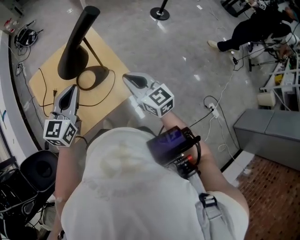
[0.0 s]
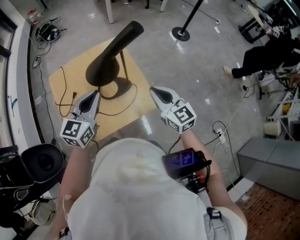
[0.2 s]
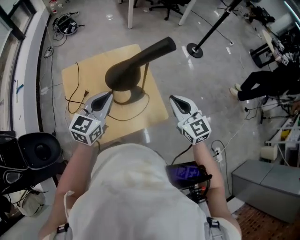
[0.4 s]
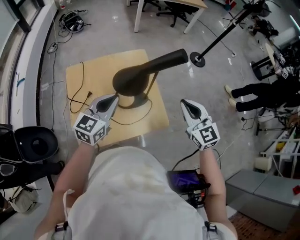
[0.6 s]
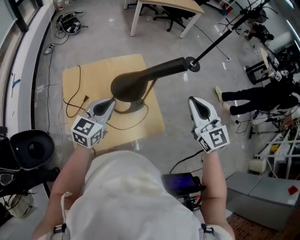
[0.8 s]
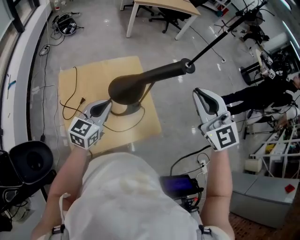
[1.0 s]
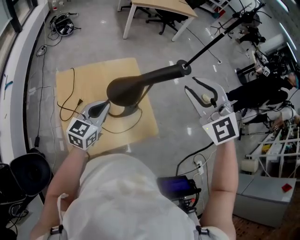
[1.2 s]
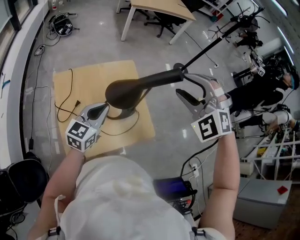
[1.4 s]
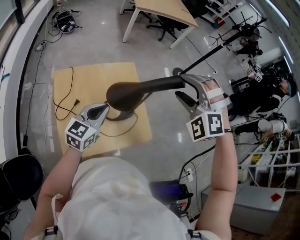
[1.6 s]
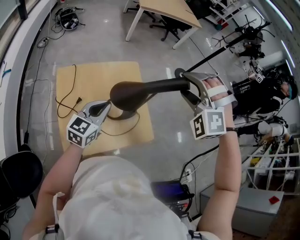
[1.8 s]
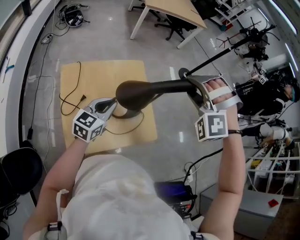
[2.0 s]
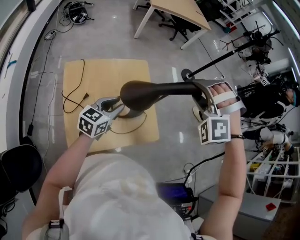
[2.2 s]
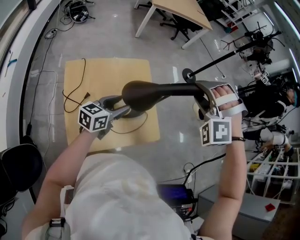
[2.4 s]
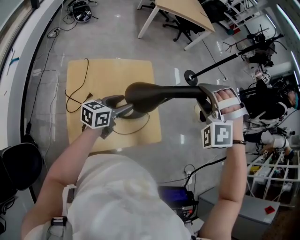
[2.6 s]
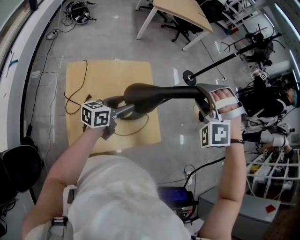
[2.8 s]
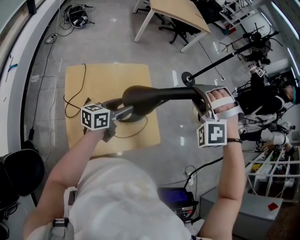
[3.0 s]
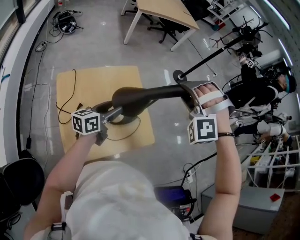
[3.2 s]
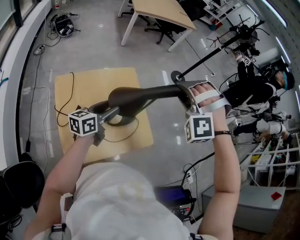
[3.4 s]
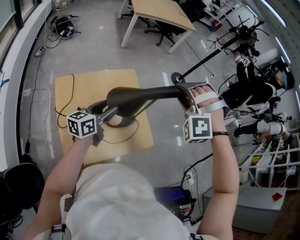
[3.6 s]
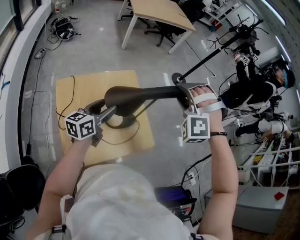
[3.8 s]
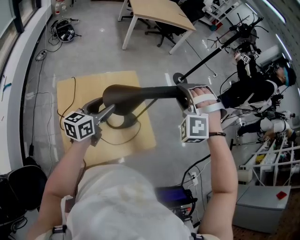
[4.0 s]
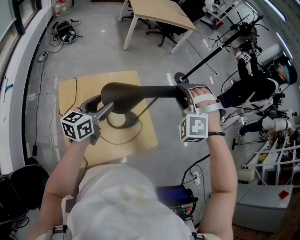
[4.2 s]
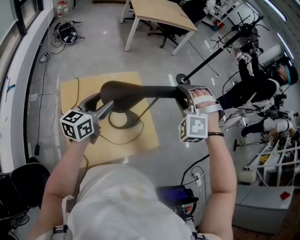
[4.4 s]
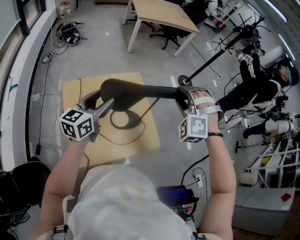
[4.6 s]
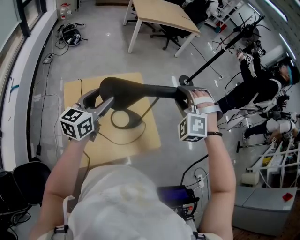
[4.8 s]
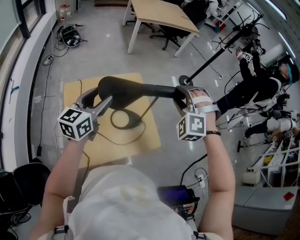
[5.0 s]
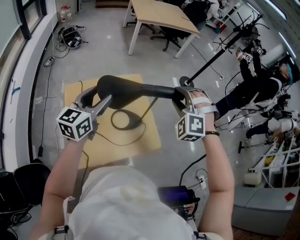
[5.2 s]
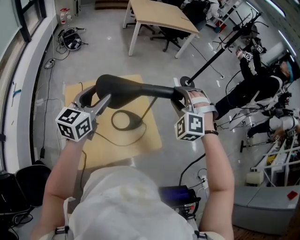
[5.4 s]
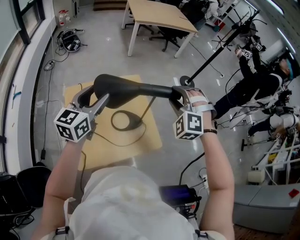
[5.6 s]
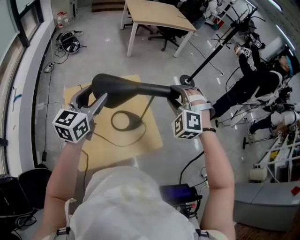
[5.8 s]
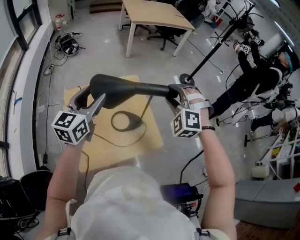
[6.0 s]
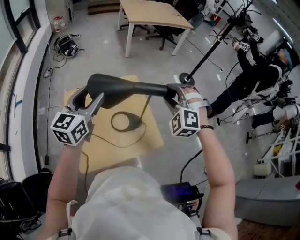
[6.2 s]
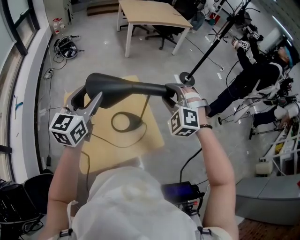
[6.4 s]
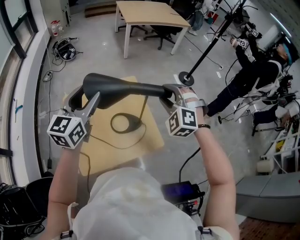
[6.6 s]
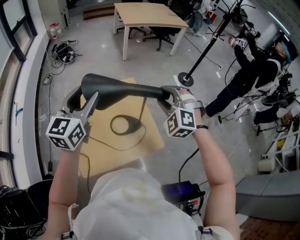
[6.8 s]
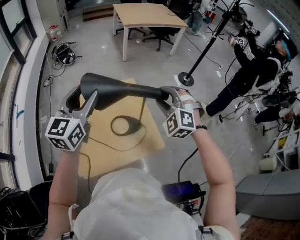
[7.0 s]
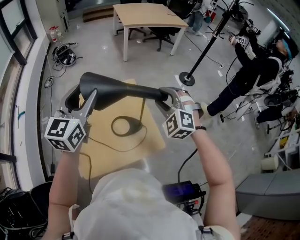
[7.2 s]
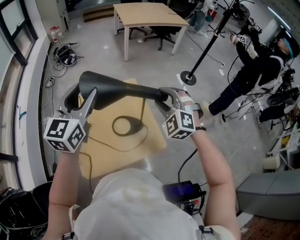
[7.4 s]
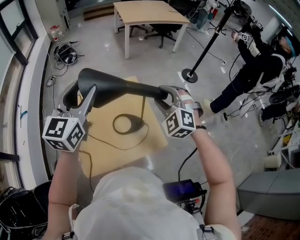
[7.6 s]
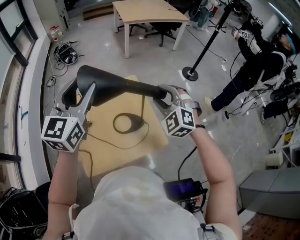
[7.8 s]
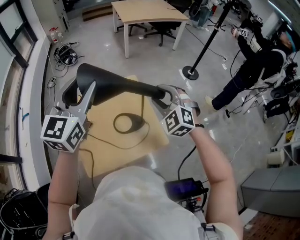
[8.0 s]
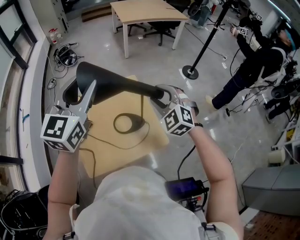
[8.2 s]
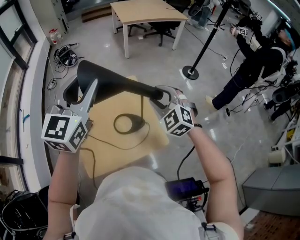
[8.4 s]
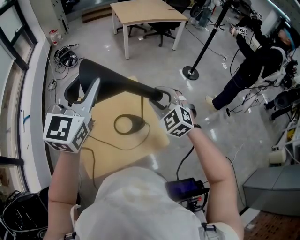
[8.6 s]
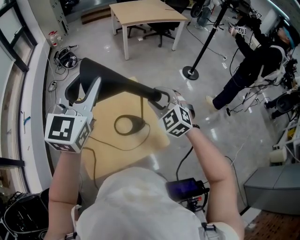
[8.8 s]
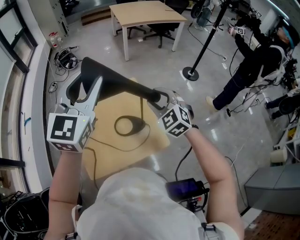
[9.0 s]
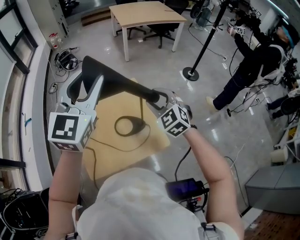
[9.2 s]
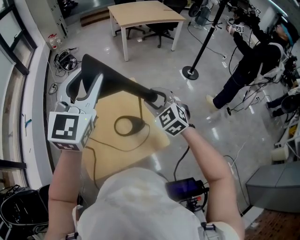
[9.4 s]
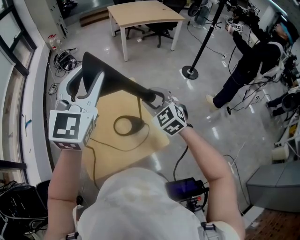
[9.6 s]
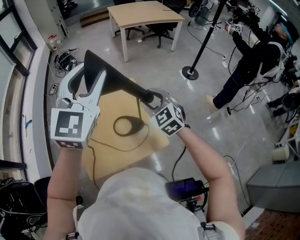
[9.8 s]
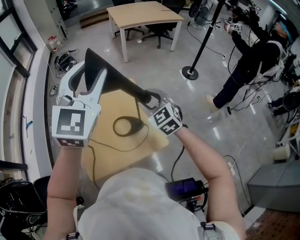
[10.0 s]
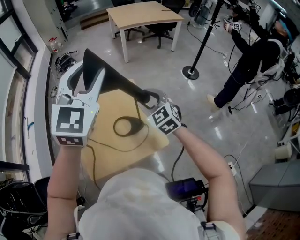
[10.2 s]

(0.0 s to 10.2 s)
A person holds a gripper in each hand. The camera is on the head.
0.0 s - 1.4 s: The left gripper goes some 10 cm to the left and forward. The right gripper heads upward and forward, covering some 25 cm, rolls counterclockwise, seen from behind, by some 80 degrees, and opens its fingers.
1.4 s - 3.0 s: The right gripper ends up roughly 5 cm from where it was, and rotates about 40 degrees. Meanwhile the left gripper changes place by some 5 cm, turns by approximately 30 degrees, and opens its fingers.
3.0 s - 4.4 s: The left gripper moves upward and to the left, approximately 10 cm, and swivels roughly 20 degrees.
4.4 s - 5.8 s: The left gripper goes about 10 cm upward.
5.8 s - 7.2 s: The left gripper heads upward, covering roughly 10 cm.
7.2 s - 8.8 s: The left gripper heads upward and to the right, covering roughly 10 cm. Meanwhile the right gripper swivels some 20 degrees.
8.8 s - 10.2 s: The left gripper goes approximately 5 cm to the right.

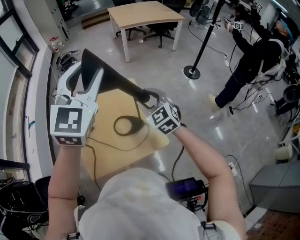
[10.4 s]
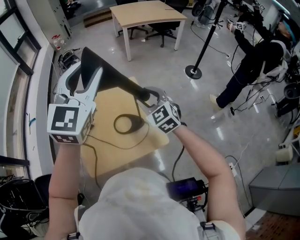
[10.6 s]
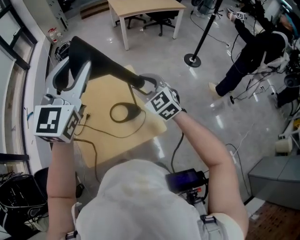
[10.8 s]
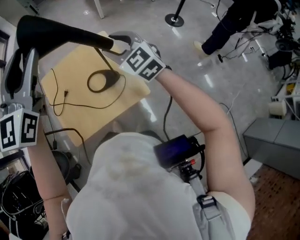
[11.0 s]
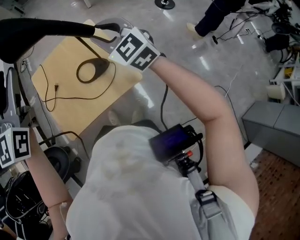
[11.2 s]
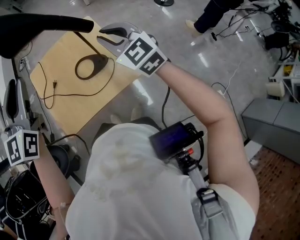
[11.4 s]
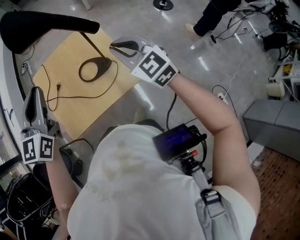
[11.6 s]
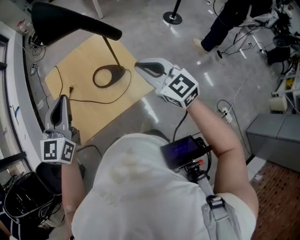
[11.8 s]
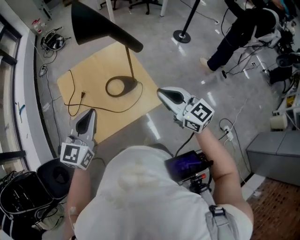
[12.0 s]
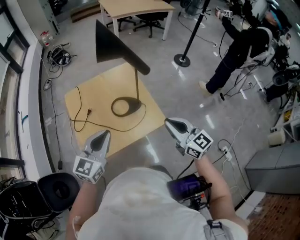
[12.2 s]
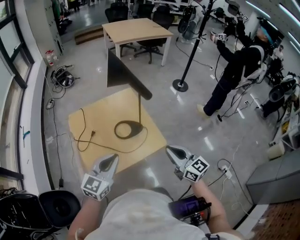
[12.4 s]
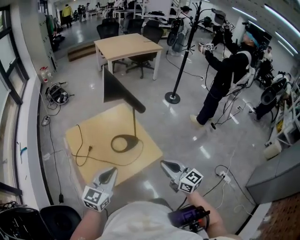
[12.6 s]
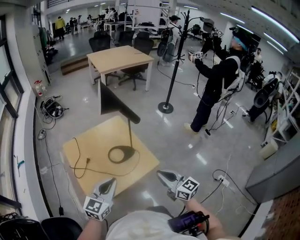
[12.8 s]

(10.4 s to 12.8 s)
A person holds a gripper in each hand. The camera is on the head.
10.4 s - 11.6 s: The left gripper is displaced downward, to the left and backward by approximately 20 cm, changes its angle by some 20 degrees, and closes its fingers. Meanwhile the right gripper moves backward, approximately 10 cm, and closes up.
11.6 s - 12.8 s: The right gripper moves backward, roughly 20 cm, and changes its angle by some 30 degrees, while the left gripper shifts approximately 20 cm backward and downward, and changes its angle by roughly 30 degrees.

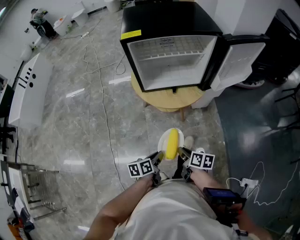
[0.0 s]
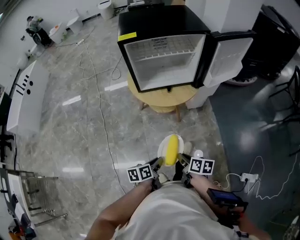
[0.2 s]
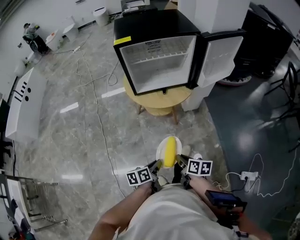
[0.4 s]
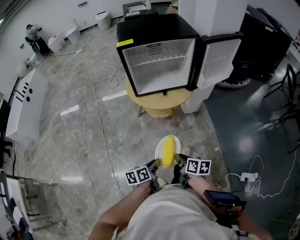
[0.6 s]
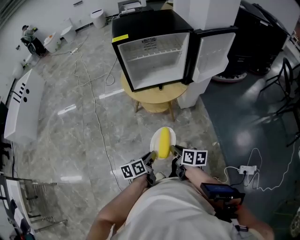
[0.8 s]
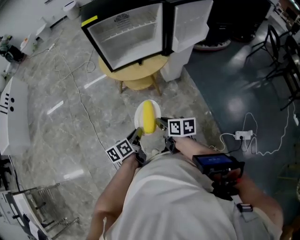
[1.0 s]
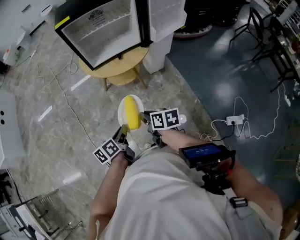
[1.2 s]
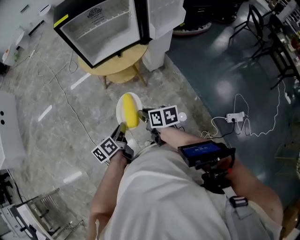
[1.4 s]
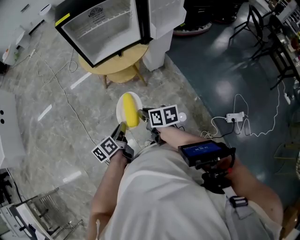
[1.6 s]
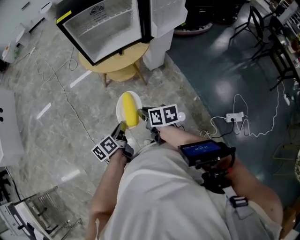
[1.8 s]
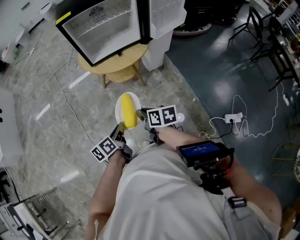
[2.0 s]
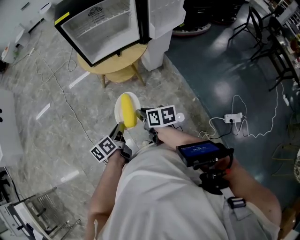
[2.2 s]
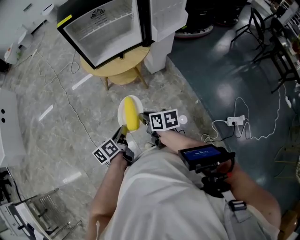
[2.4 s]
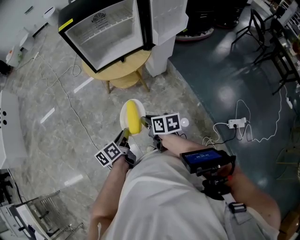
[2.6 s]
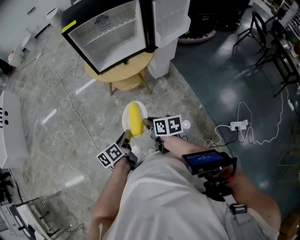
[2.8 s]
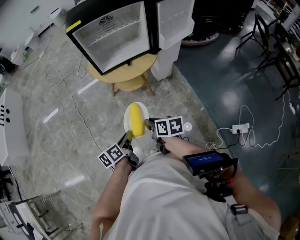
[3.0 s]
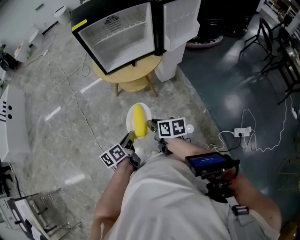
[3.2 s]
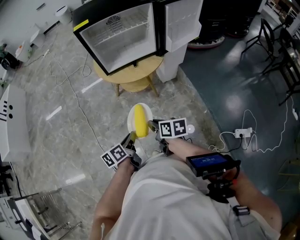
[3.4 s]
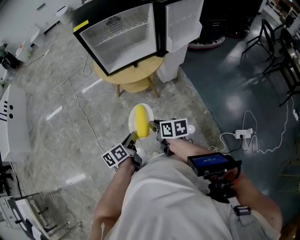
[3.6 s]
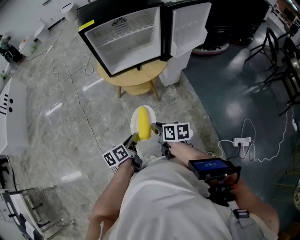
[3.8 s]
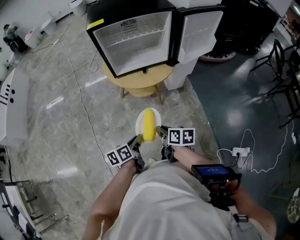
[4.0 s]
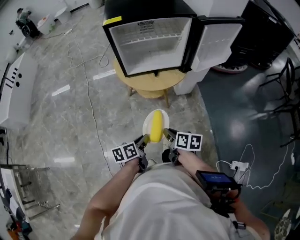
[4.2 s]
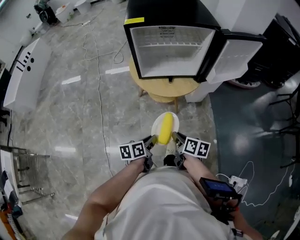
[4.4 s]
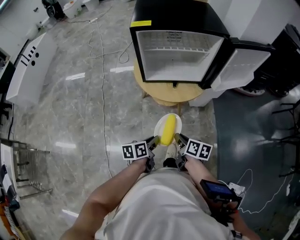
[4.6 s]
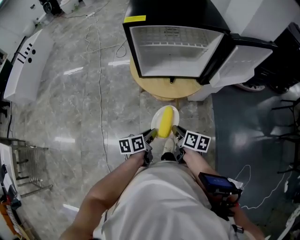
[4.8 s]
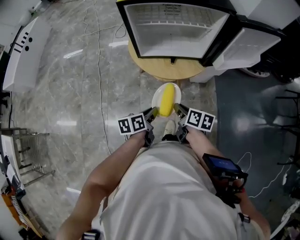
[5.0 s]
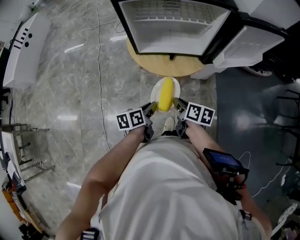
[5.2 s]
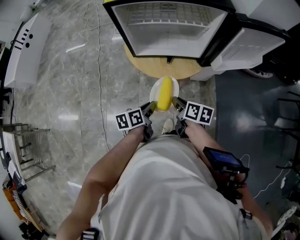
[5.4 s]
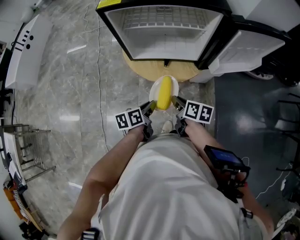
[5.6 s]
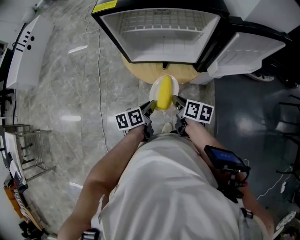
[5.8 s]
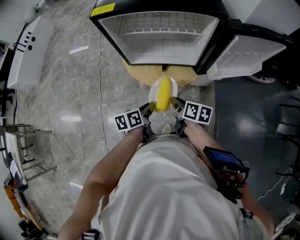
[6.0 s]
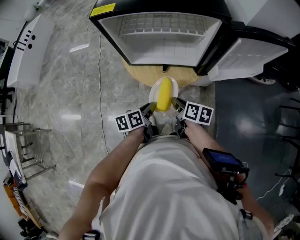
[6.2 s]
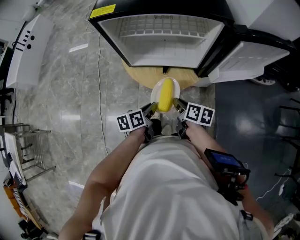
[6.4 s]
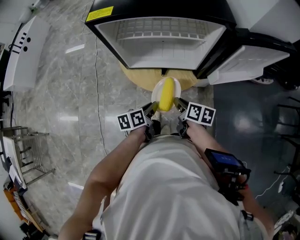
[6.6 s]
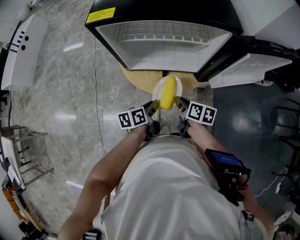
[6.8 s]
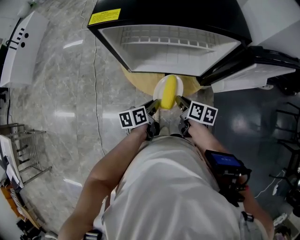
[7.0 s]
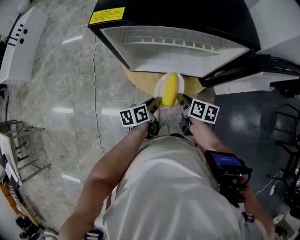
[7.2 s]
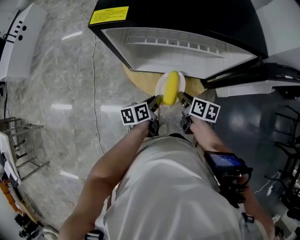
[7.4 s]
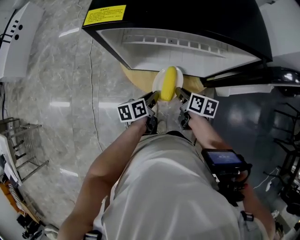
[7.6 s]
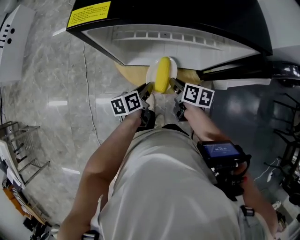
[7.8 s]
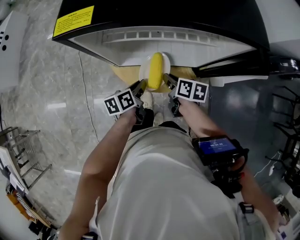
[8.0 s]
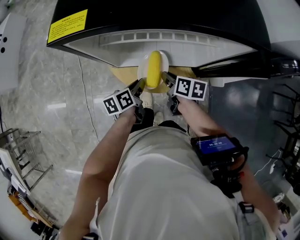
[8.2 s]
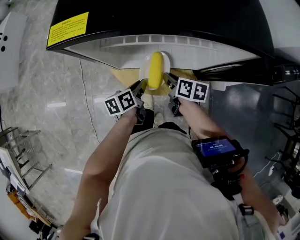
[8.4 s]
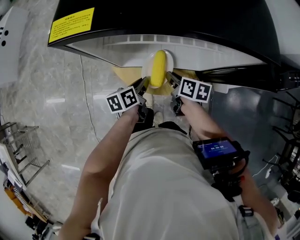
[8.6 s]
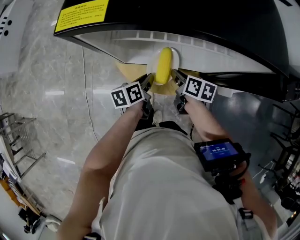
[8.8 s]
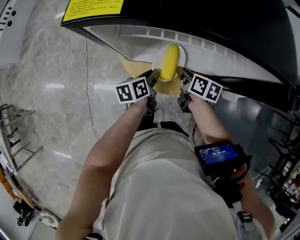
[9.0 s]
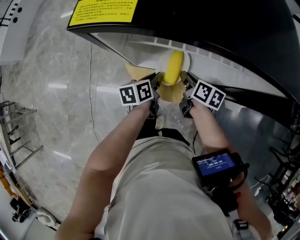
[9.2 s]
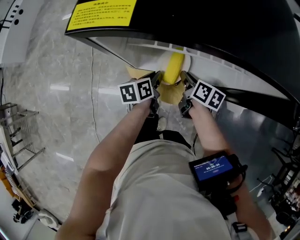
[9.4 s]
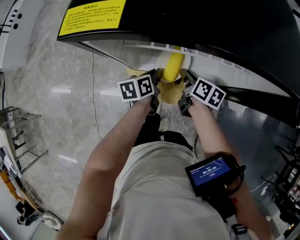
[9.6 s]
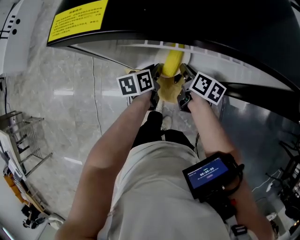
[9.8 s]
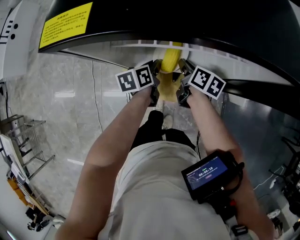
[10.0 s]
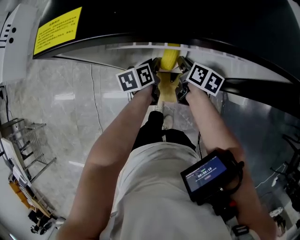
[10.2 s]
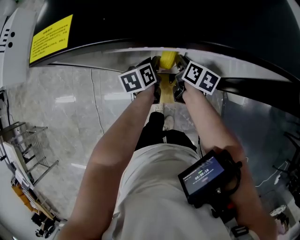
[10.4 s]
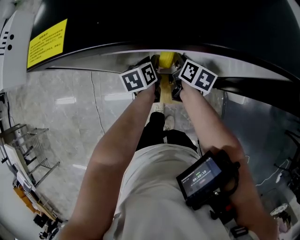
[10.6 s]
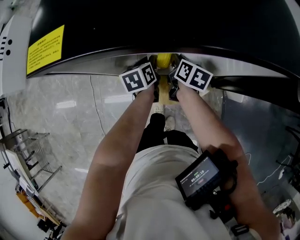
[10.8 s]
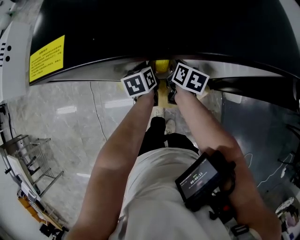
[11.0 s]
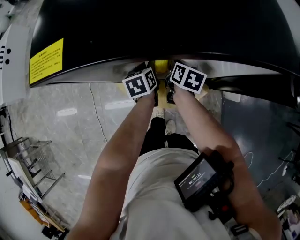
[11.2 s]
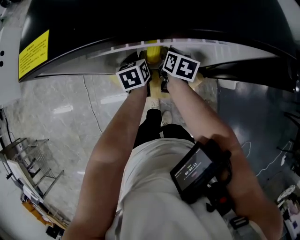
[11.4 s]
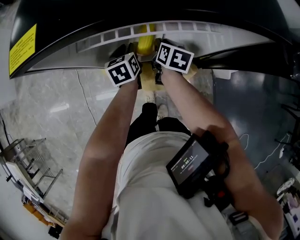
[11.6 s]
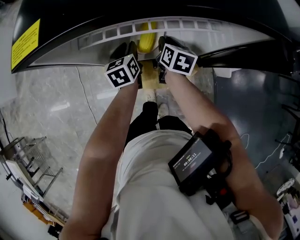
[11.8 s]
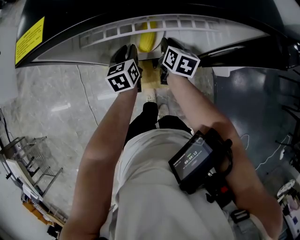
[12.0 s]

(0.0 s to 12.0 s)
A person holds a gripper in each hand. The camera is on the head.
0.0 s - 1.6 s: The right gripper moves backward and upward, approximately 10 cm, while the left gripper is displaced backward by some 10 cm.
1.6 s - 3.0 s: Neither gripper changes place.
3.0 s - 4.4 s: The left gripper moves forward and to the right, approximately 10 cm, while the right gripper shifts some 10 cm forward.
4.4 s - 6.0 s: The left gripper is displaced forward and to the right by approximately 20 cm. The right gripper goes approximately 20 cm forward.
6.0 s - 7.6 s: The grippers both shift forward by roughly 15 cm.
7.6 s - 9.0 s: Both grippers move forward, about 10 cm.
9.0 s - 10.4 s: The grippers both shift forward by approximately 10 cm.
10.4 s - 12.0 s: The left gripper rotates some 20 degrees.
